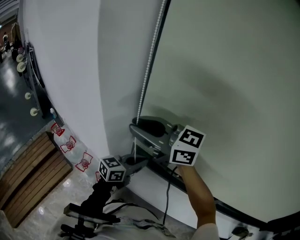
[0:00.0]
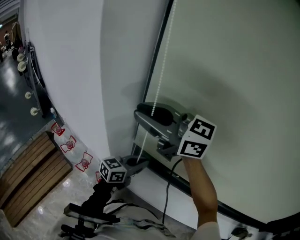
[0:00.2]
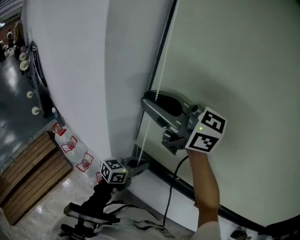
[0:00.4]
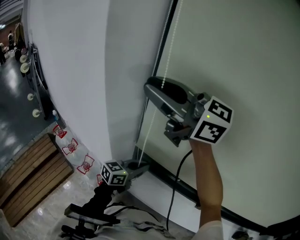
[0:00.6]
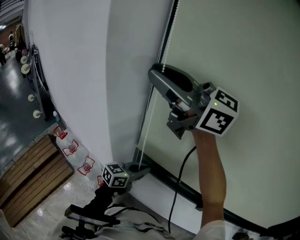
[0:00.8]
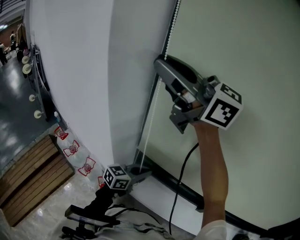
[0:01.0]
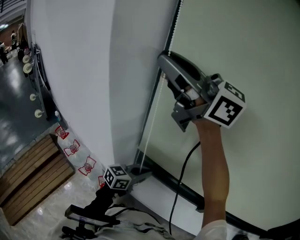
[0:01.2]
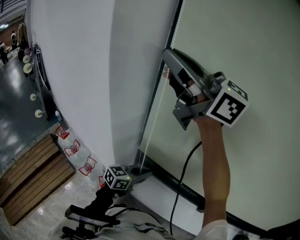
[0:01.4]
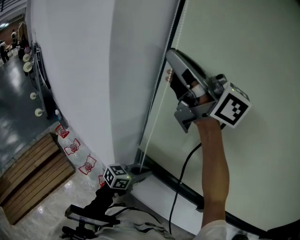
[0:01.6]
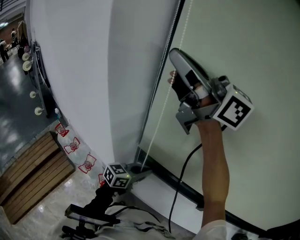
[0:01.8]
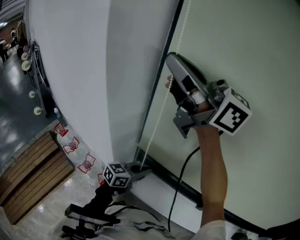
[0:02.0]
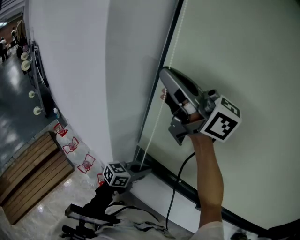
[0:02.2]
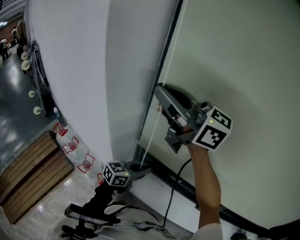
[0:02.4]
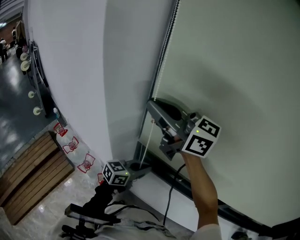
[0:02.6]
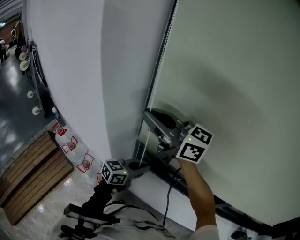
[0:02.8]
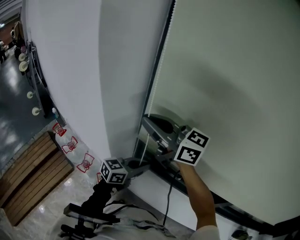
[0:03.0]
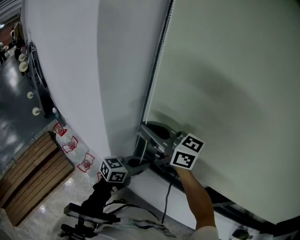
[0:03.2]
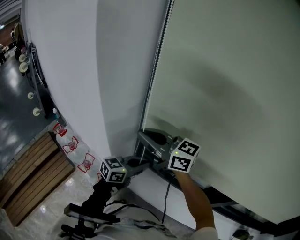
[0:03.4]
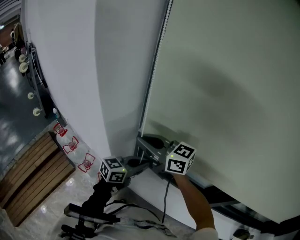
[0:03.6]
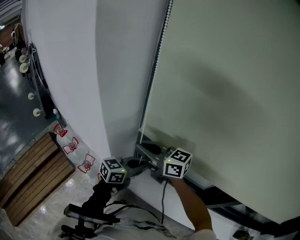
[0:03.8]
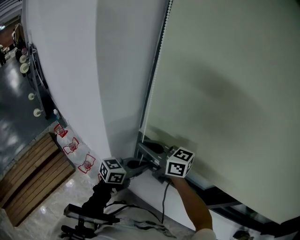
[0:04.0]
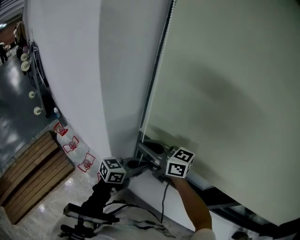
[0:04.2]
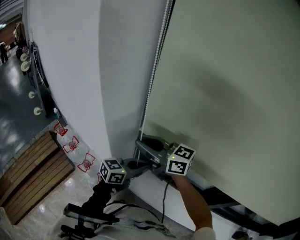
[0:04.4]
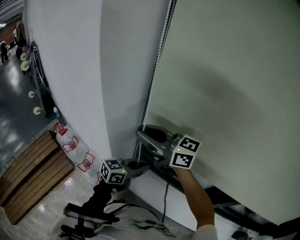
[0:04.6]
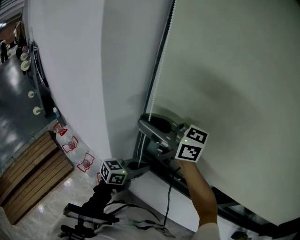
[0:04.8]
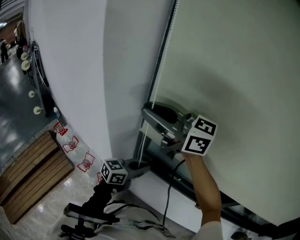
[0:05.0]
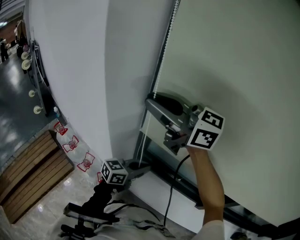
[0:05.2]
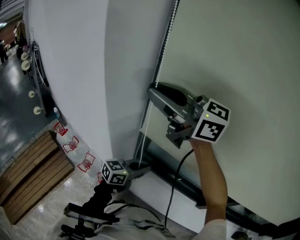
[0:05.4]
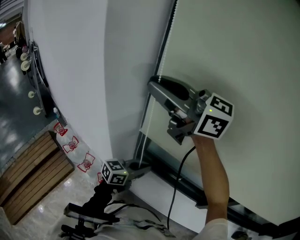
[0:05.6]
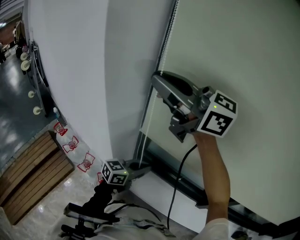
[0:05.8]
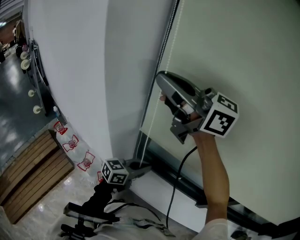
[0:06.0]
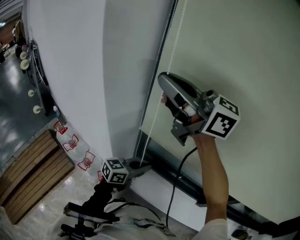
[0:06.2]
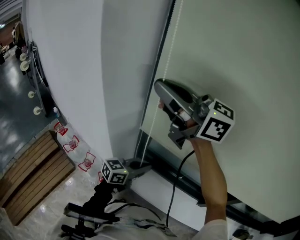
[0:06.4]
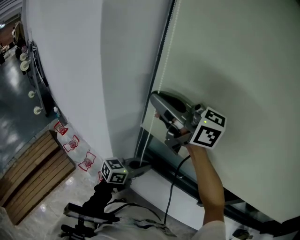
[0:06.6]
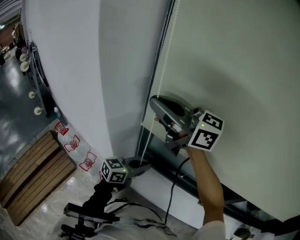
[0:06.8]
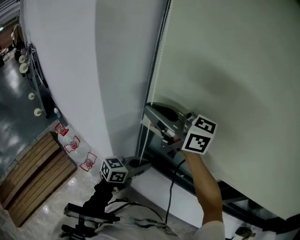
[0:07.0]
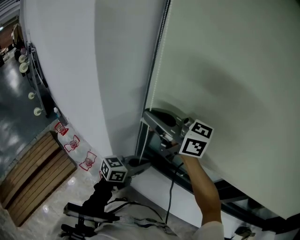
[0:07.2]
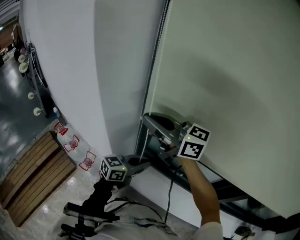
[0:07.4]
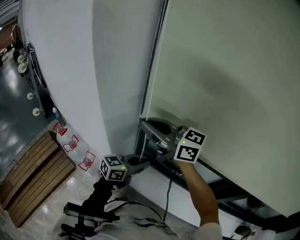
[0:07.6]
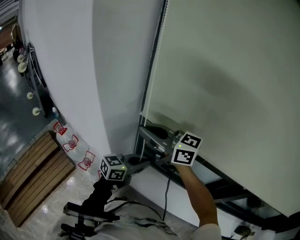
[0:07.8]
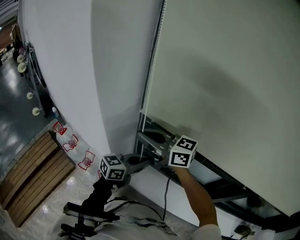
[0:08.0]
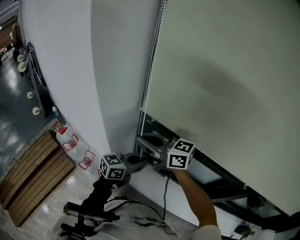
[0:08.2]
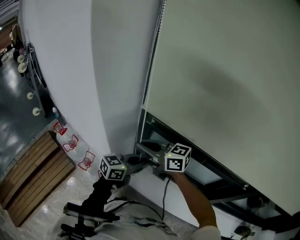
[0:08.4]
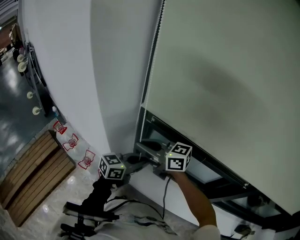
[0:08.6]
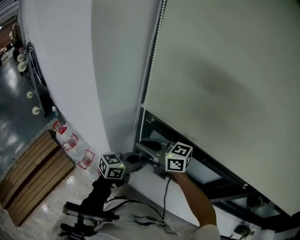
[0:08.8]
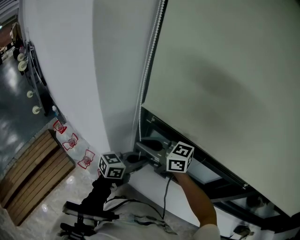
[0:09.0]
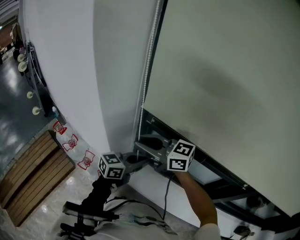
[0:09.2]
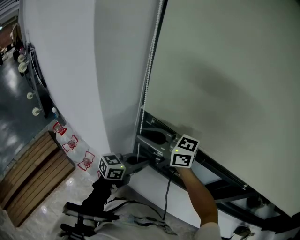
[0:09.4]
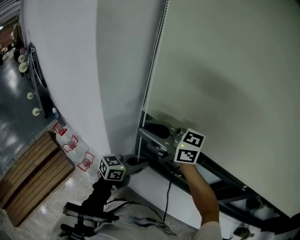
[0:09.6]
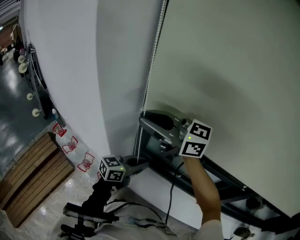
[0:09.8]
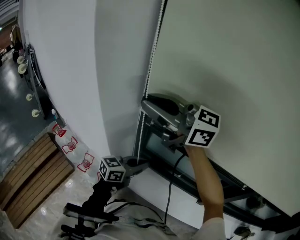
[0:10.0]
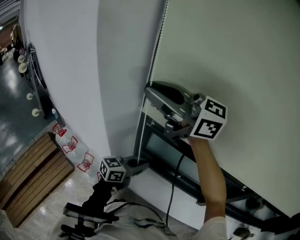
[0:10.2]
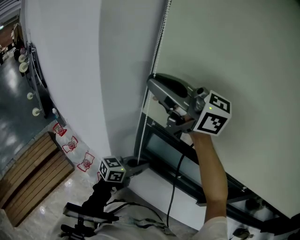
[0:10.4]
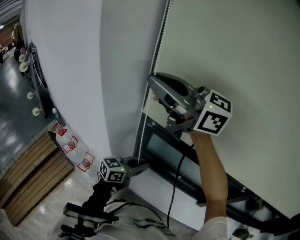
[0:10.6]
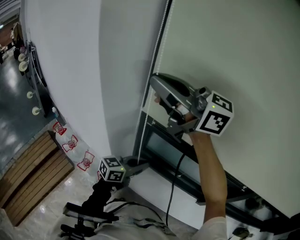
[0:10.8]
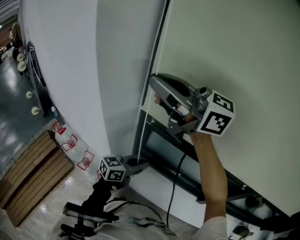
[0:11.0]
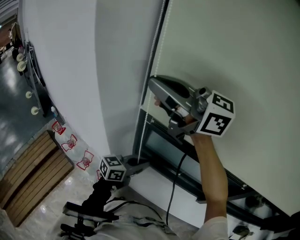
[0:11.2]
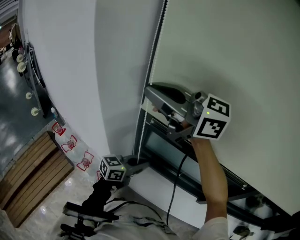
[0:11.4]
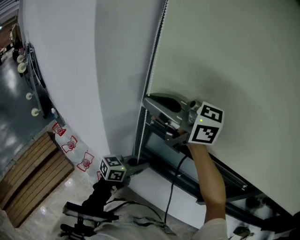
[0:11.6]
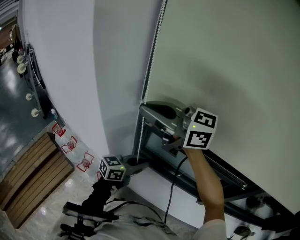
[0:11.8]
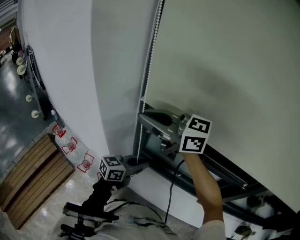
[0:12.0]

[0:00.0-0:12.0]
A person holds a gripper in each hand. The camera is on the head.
0:00.0 to 0:01.6: The right gripper goes roughly 20 cm upward.
0:01.6 to 0:03.0: The right gripper goes approximately 20 cm downward.
0:03.0 to 0:04.4: The right gripper heads downward, covering roughly 10 cm.
0:04.4 to 0:06.0: The right gripper moves upward, some 25 cm.
0:06.0 to 0:07.6: The right gripper moves downward, about 15 cm.
0:07.6 to 0:09.0: The right gripper moves downward, about 10 cm.
0:09.0 to 0:10.4: The right gripper moves upward, some 25 cm, and swivels roughly 20 degrees.
0:10.4 to 0:12.0: The right gripper heads downward, covering some 10 cm.

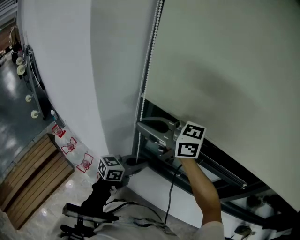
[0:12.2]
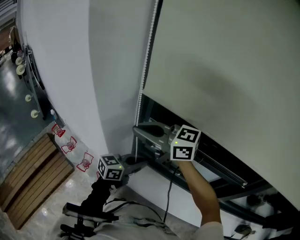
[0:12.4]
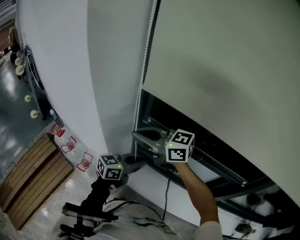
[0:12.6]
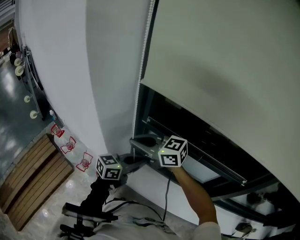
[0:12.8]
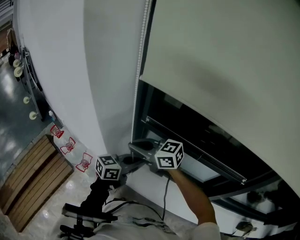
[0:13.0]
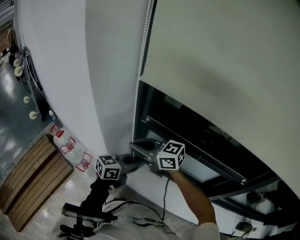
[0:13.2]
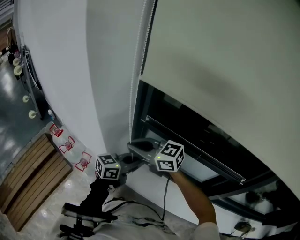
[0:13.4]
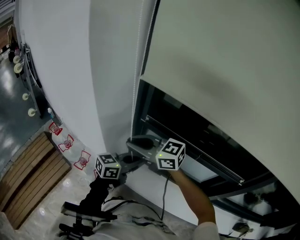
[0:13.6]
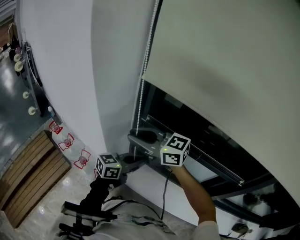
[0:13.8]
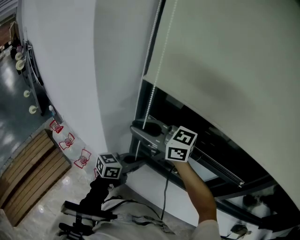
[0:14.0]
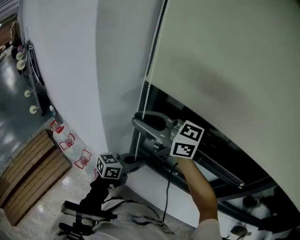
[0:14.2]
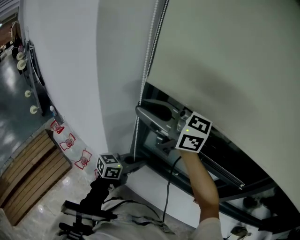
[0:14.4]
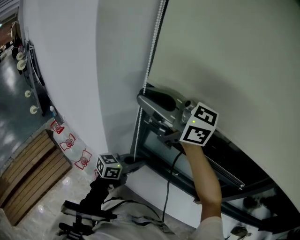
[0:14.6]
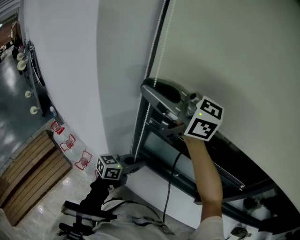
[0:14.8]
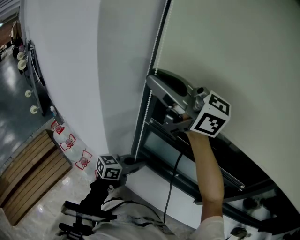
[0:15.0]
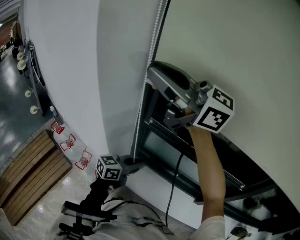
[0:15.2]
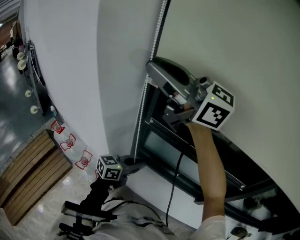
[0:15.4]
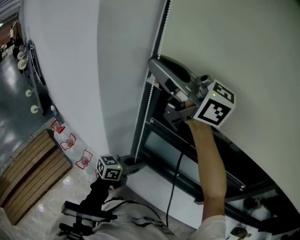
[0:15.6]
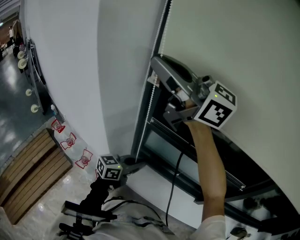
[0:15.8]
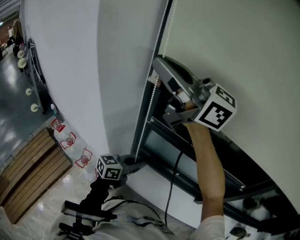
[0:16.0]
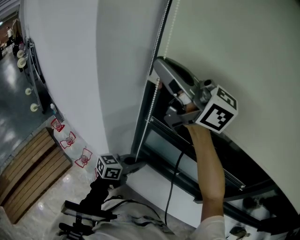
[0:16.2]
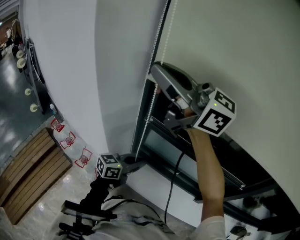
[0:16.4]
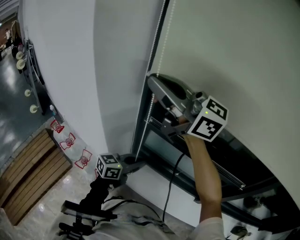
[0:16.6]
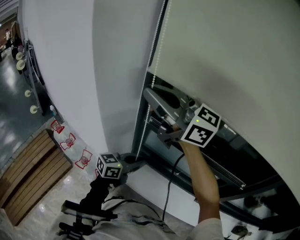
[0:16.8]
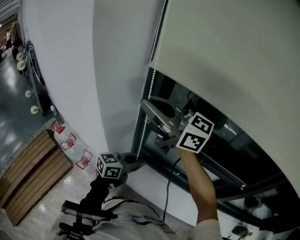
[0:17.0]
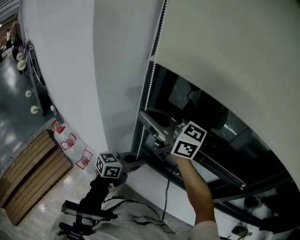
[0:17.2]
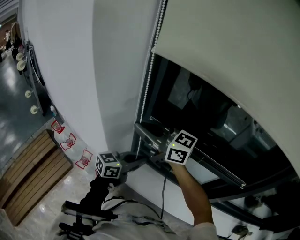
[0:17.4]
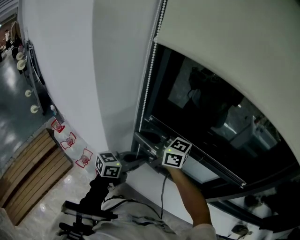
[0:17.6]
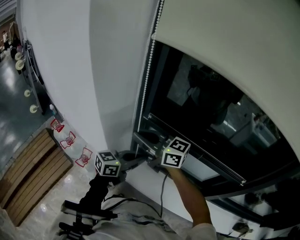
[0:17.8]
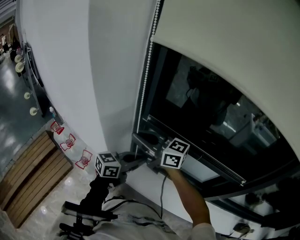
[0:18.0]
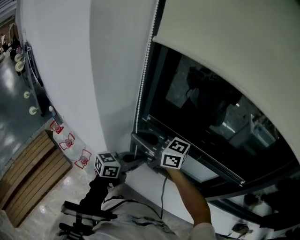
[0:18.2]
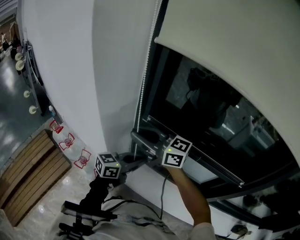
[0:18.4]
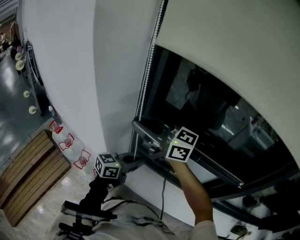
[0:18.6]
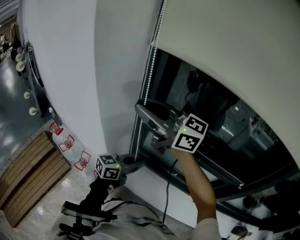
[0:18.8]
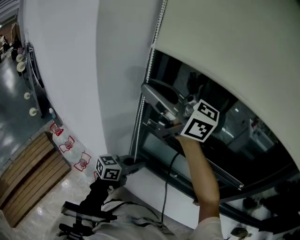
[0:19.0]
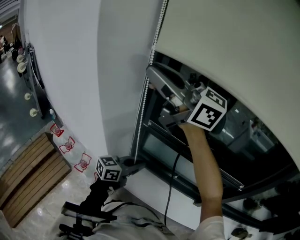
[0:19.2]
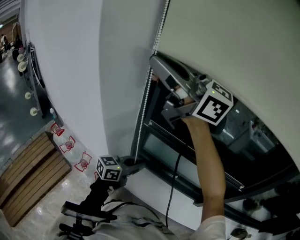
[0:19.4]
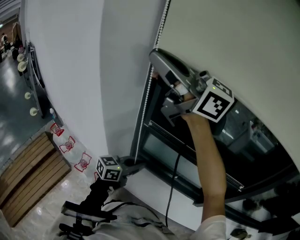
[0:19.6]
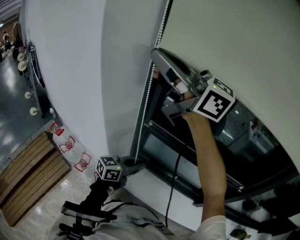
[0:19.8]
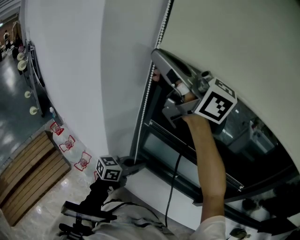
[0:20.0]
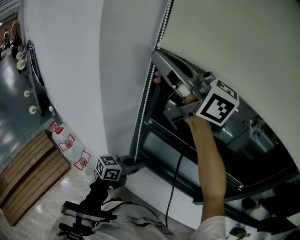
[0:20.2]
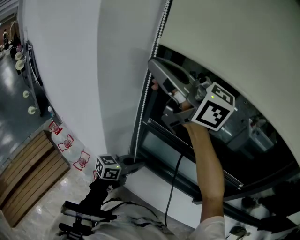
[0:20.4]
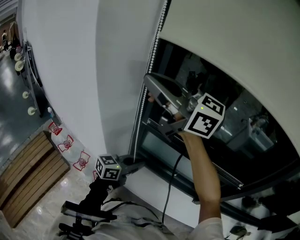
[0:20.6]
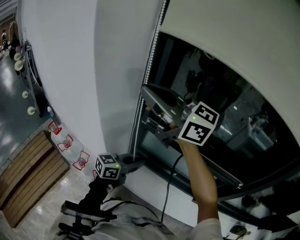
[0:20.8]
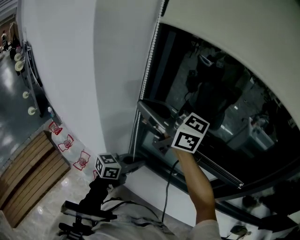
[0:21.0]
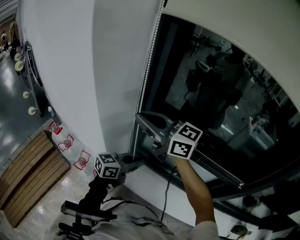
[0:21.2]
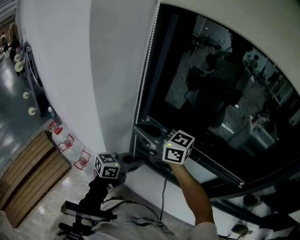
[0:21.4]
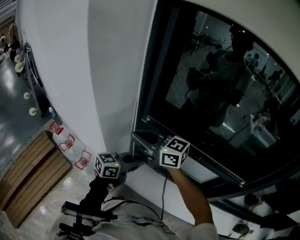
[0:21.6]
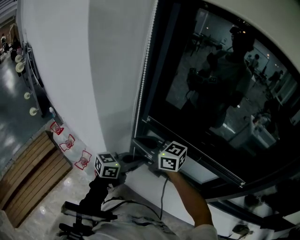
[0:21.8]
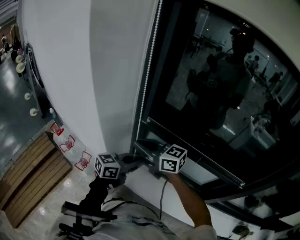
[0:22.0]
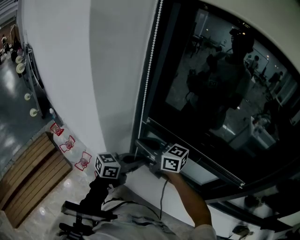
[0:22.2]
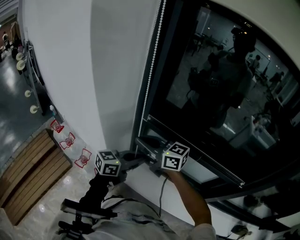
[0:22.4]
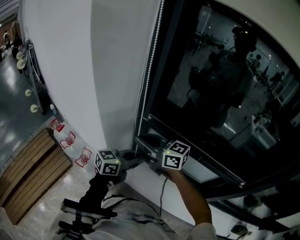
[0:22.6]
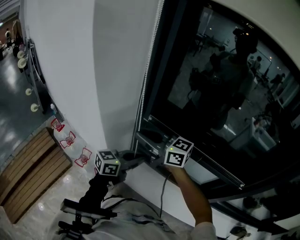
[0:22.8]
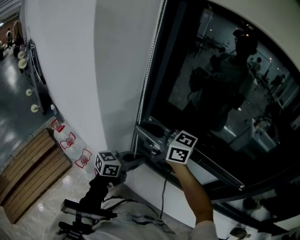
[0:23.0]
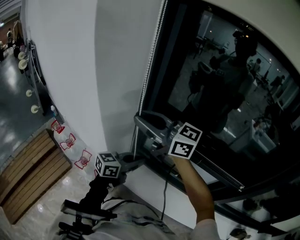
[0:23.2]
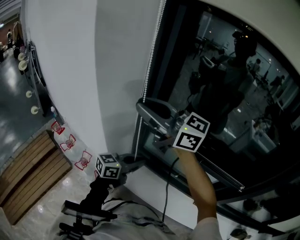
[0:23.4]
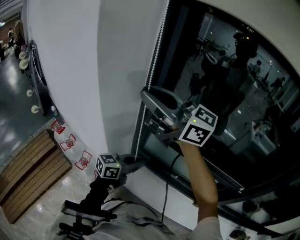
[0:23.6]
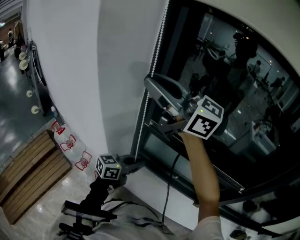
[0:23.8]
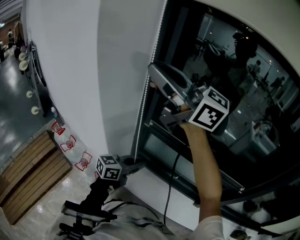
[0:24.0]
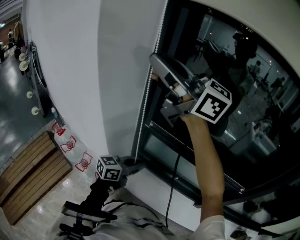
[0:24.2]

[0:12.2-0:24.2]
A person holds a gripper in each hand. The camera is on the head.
0:12.2 to 0:13.8: The right gripper is displaced downward by roughly 10 cm.
0:13.8 to 0:15.2: The right gripper travels upward by roughly 25 cm, and changes its angle by about 20 degrees.
0:15.2 to 0:16.6: There are only small adjustments of the grippers.
0:16.6 to 0:18.2: The right gripper goes some 25 cm downward.
0:18.2 to 0:19.8: The right gripper goes approximately 30 cm upward, and changes its angle by some 20 degrees.
0:19.8 to 0:21.2: The right gripper shifts some 20 cm downward.
0:21.2 to 0:22.6: The right gripper heads downward, covering roughly 15 cm.
0:22.6 to 0:24.2: The right gripper travels upward by about 35 cm, and changes its angle by approximately 30 degrees.
